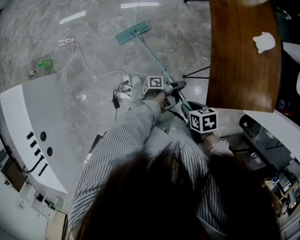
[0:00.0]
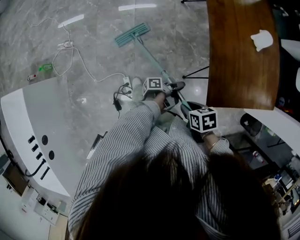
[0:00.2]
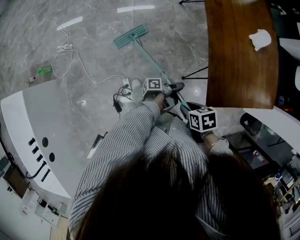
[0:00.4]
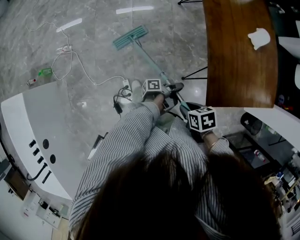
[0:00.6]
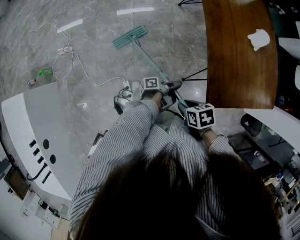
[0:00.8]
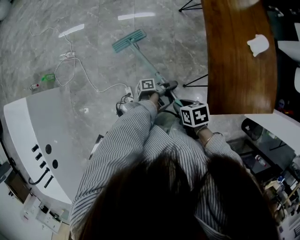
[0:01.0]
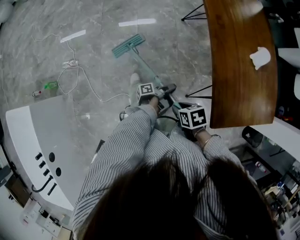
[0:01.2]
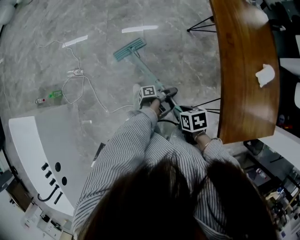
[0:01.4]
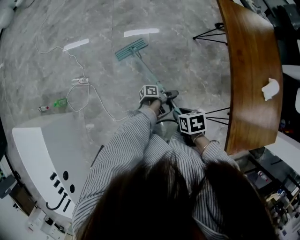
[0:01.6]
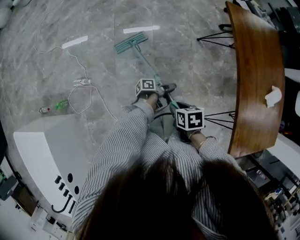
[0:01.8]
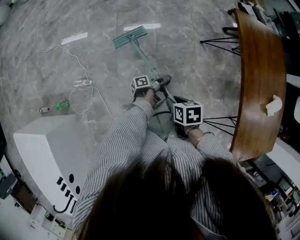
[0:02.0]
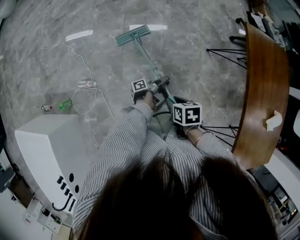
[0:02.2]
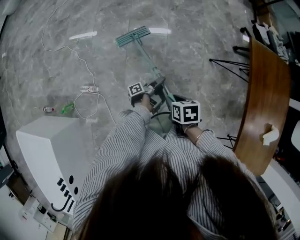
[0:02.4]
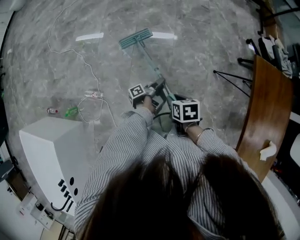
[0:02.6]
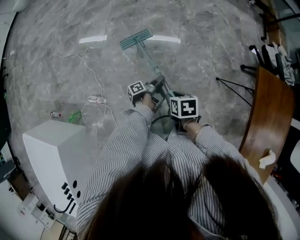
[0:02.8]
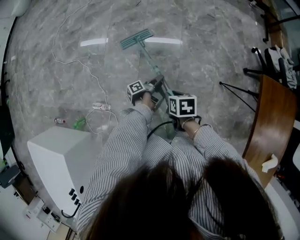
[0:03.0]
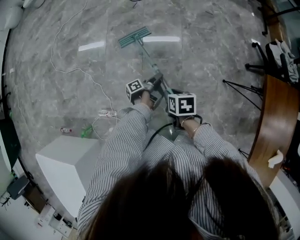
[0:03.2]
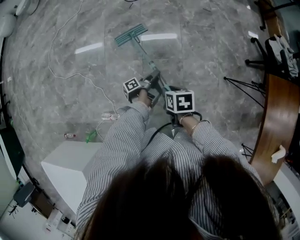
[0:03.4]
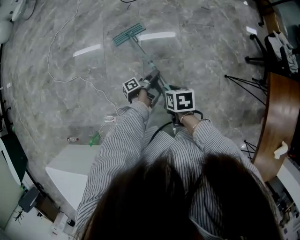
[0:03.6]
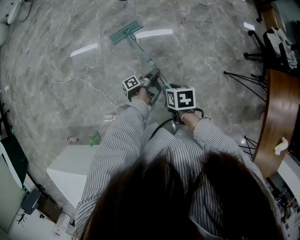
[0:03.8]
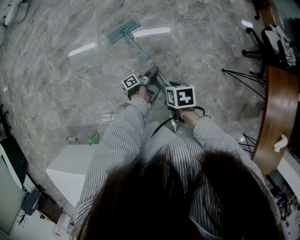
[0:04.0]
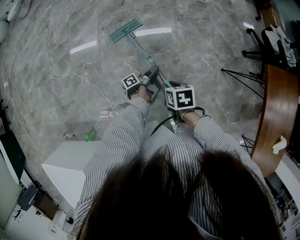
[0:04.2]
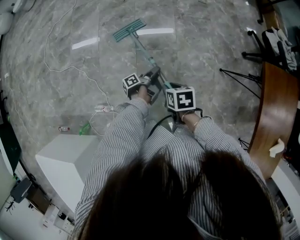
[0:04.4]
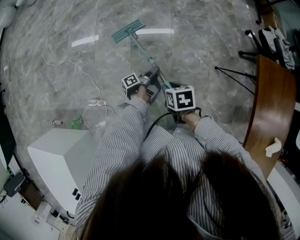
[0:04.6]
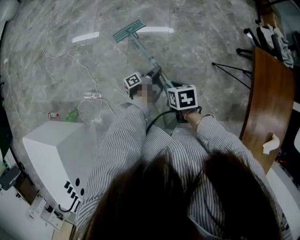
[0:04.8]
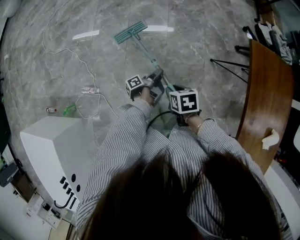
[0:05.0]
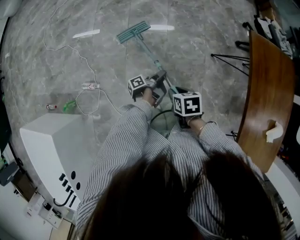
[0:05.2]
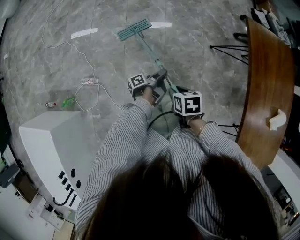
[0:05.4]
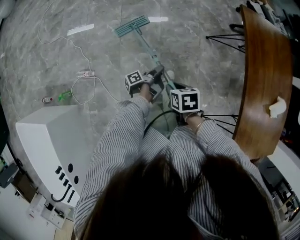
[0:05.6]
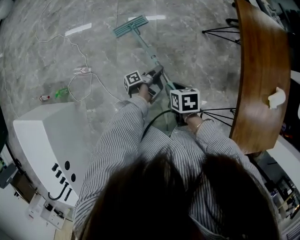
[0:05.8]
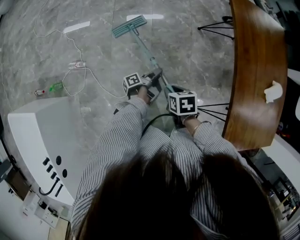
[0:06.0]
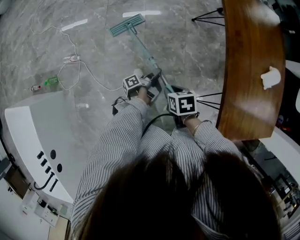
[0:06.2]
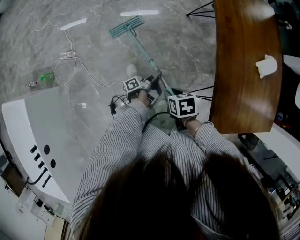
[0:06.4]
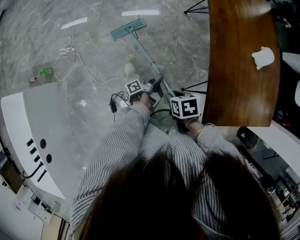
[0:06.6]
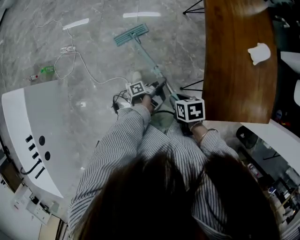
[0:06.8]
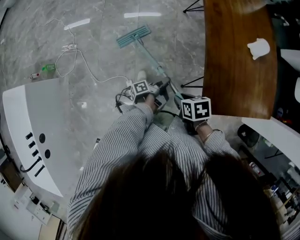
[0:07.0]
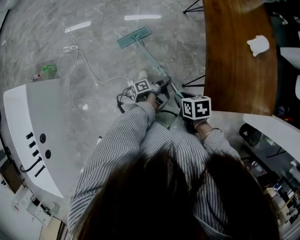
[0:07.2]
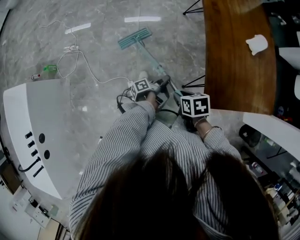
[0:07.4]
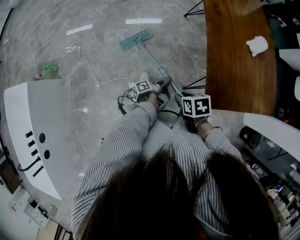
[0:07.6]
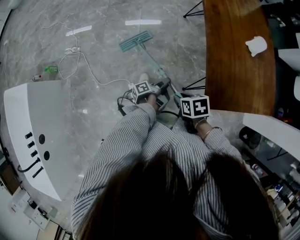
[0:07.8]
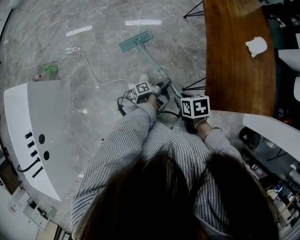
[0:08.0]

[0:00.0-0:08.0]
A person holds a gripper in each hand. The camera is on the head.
0:00.0 to 0:01.6: The right gripper ends up approximately 35 cm from where it was.
0:01.6 to 0:03.2: The right gripper changes place by roughly 60 cm.
0:03.2 to 0:04.8: The right gripper moves approximately 15 cm.
0:04.8 to 0:06.4: The right gripper changes place by some 60 cm.
0:06.4 to 0:08.0: The right gripper ends up about 15 cm from where it was.

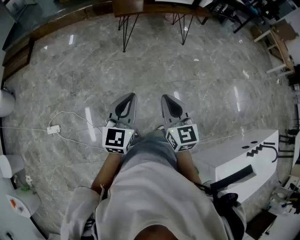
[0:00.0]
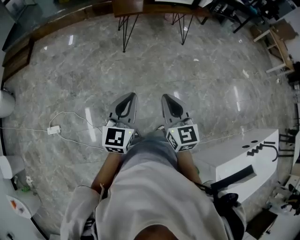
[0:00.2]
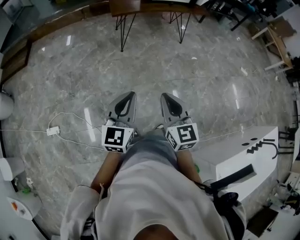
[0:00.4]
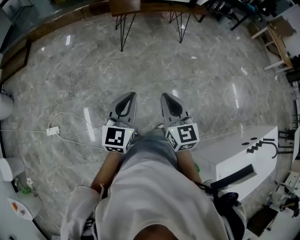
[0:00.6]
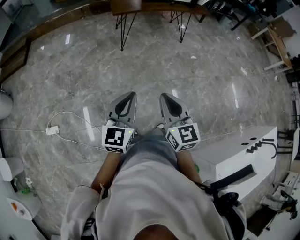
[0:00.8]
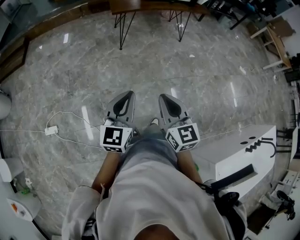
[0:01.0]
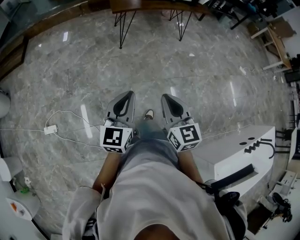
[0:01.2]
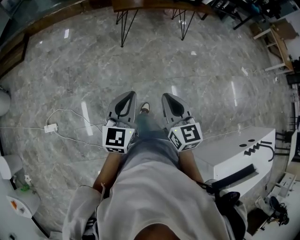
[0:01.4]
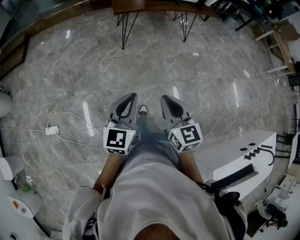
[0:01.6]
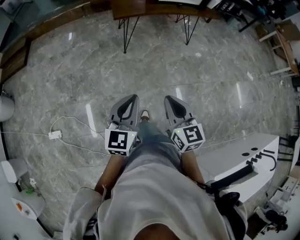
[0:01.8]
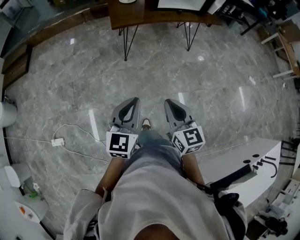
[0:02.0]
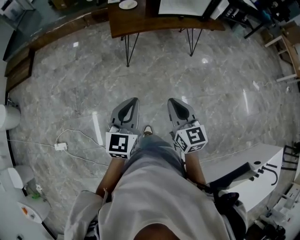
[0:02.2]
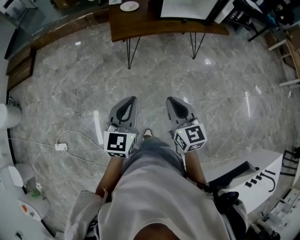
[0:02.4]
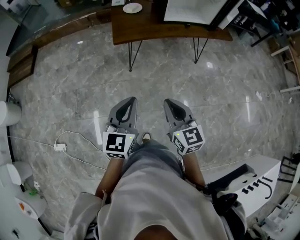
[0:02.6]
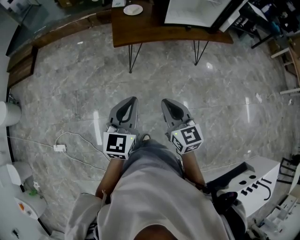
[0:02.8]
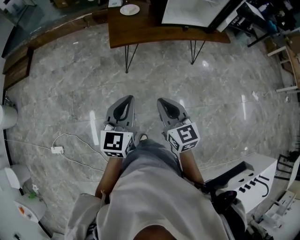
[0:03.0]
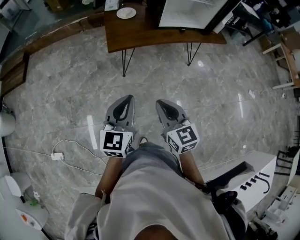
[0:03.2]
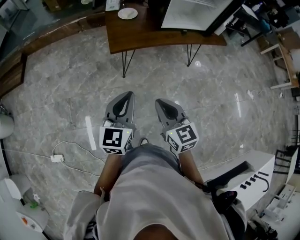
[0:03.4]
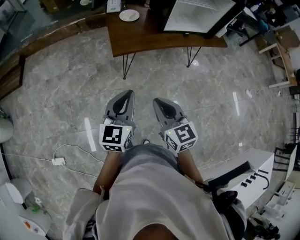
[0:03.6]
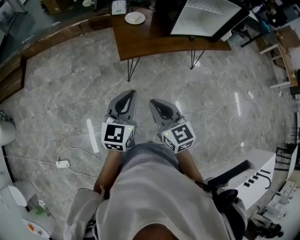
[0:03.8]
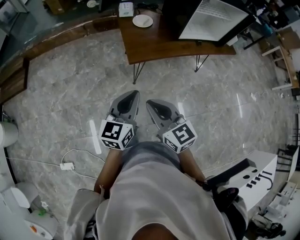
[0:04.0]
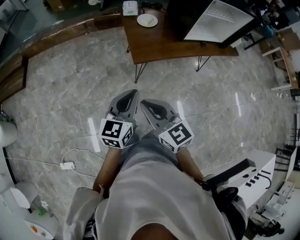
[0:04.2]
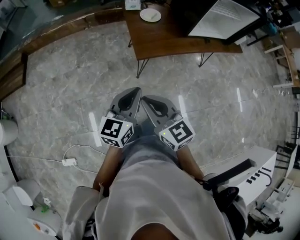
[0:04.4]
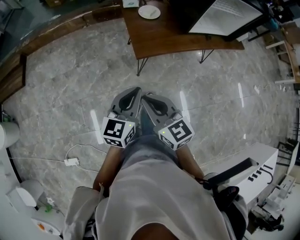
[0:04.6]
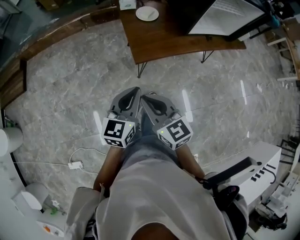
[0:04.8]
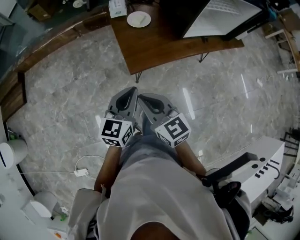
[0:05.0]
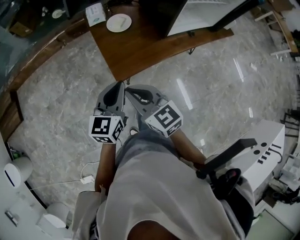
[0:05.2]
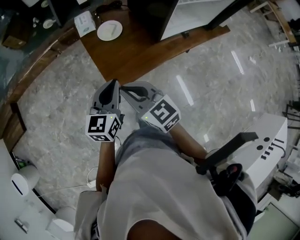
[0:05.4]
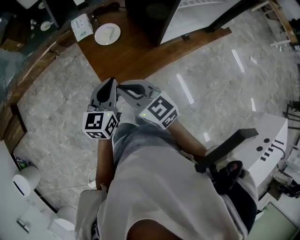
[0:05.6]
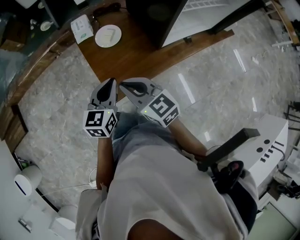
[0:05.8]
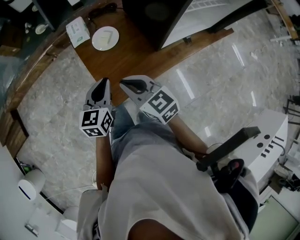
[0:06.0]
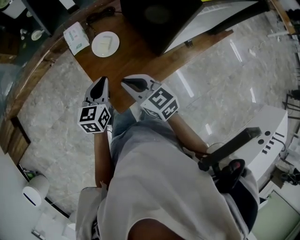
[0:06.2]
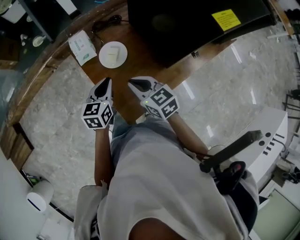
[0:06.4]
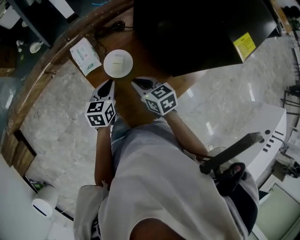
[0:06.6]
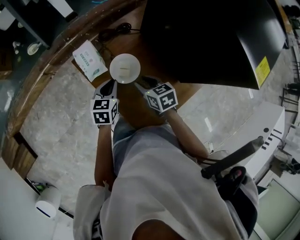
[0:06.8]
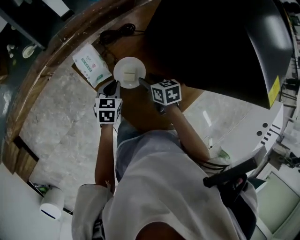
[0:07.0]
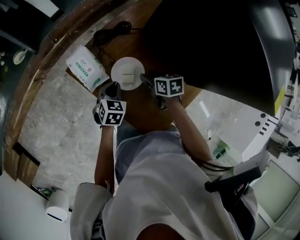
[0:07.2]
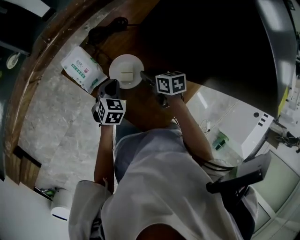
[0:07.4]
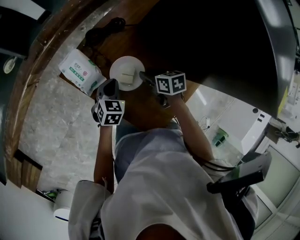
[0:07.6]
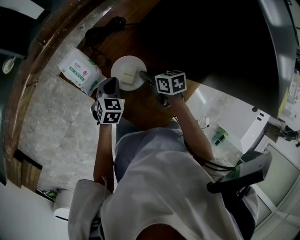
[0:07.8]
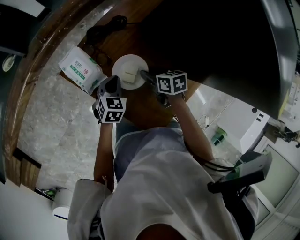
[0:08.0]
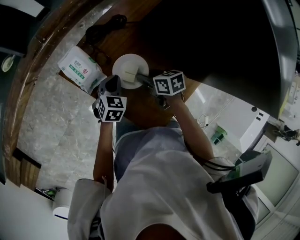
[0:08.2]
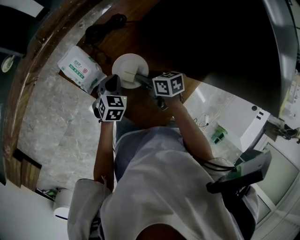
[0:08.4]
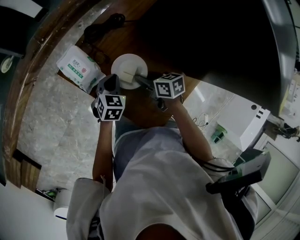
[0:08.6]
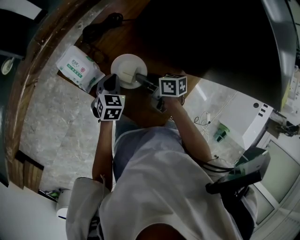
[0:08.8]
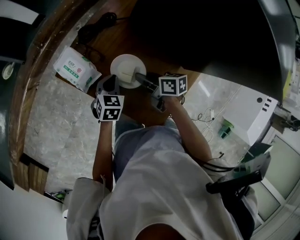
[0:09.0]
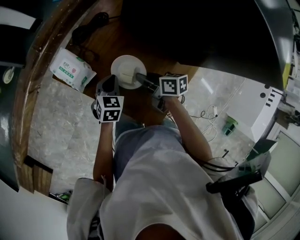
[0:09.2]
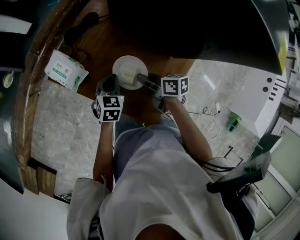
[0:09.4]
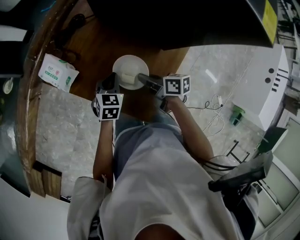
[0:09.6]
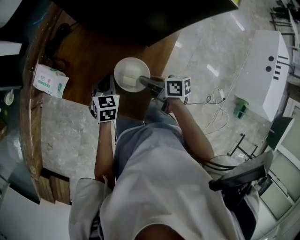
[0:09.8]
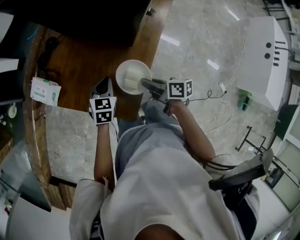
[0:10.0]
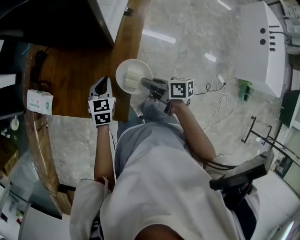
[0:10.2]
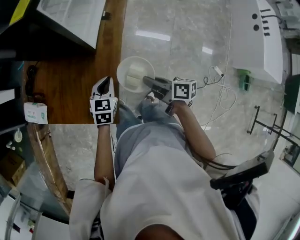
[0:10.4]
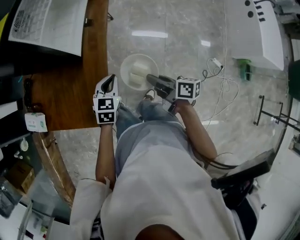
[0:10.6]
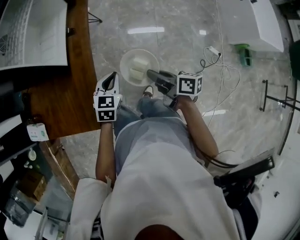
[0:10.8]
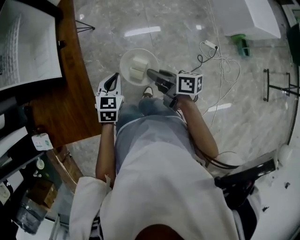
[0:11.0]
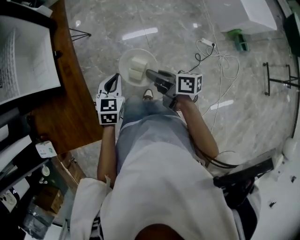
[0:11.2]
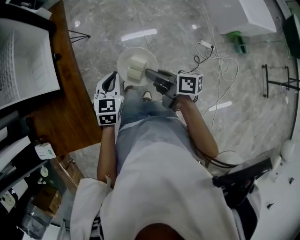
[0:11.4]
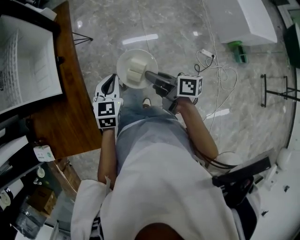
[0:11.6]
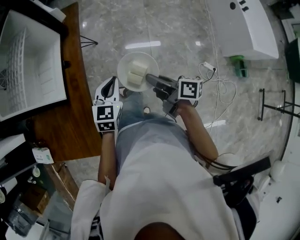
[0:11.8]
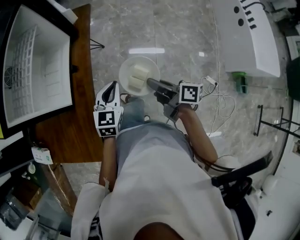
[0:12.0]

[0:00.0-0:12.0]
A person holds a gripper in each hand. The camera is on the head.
0:00.0 to 0:01.6: Both grippers move forward, roughly 10 cm.
0:01.6 to 0:03.0: The pair of grippers is taken forward, roughly 50 cm.
0:03.0 to 0:04.4: The two grippers go roughly 40 cm to the left and forward.
0:04.4 to 0:06.0: Both grippers are carried forward, roughly 50 cm.
0:06.0 to 0:07.6: Both grippers are carried forward, about 40 cm. Both grippers travel together downward, some 25 cm. The left gripper turns by about 40 degrees. The right gripper tilts its fingers about 30 degrees downward, and opens its fingers.
0:07.6 to 0:09.0: The right gripper ends up about 5 cm from where it was, rotates roughly 20 degrees, and closes.
0:09.0 to 0:10.4: Both grippers are carried approximately 50 cm. The left gripper swivels some 30 degrees. Meanwhile the right gripper swivels about 40 degrees.
0:10.4 to 0:12.0: Both grippers travel together to the right and forward, roughly 35 cm.

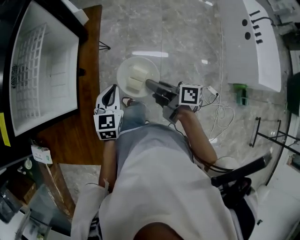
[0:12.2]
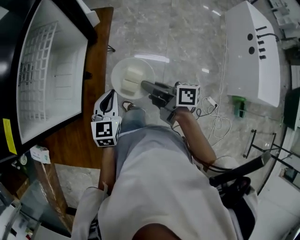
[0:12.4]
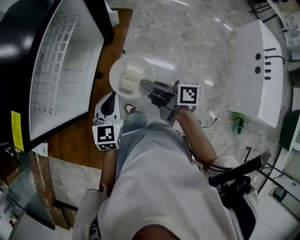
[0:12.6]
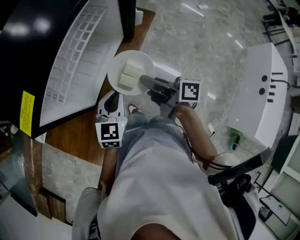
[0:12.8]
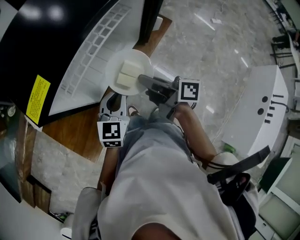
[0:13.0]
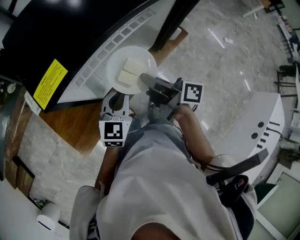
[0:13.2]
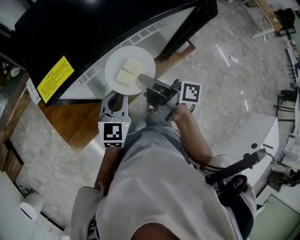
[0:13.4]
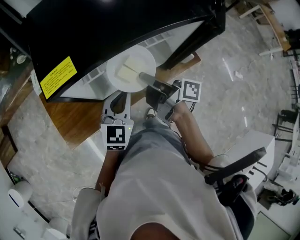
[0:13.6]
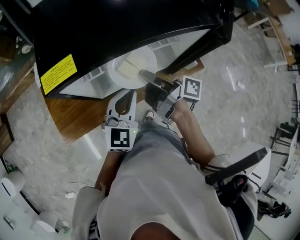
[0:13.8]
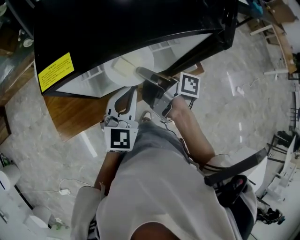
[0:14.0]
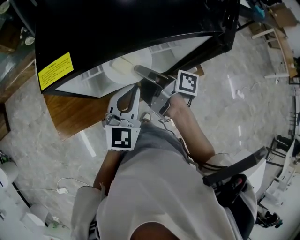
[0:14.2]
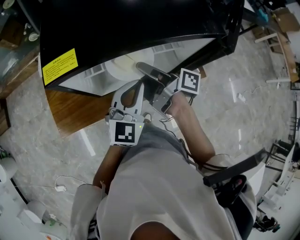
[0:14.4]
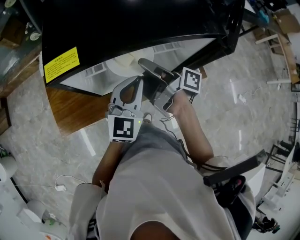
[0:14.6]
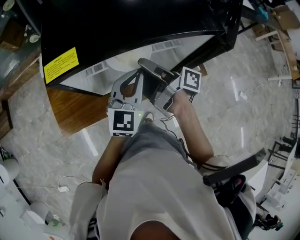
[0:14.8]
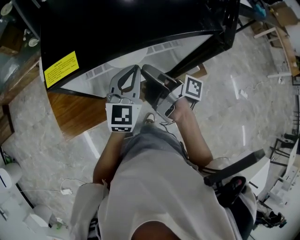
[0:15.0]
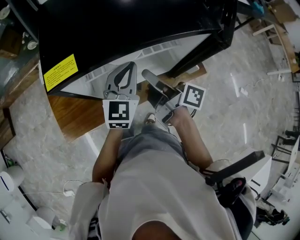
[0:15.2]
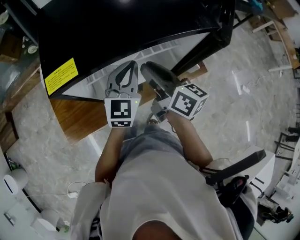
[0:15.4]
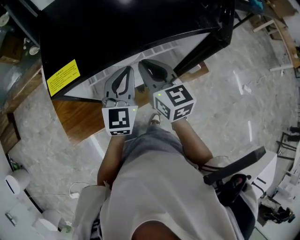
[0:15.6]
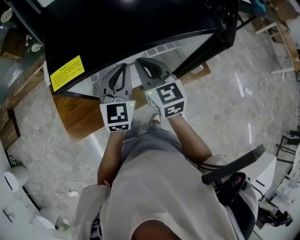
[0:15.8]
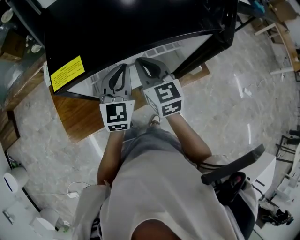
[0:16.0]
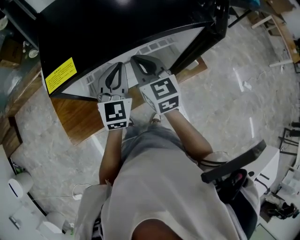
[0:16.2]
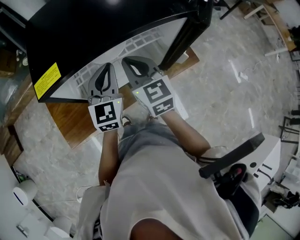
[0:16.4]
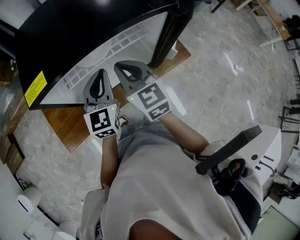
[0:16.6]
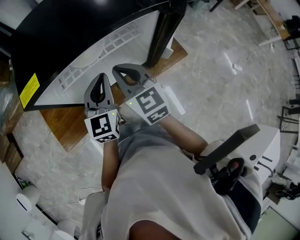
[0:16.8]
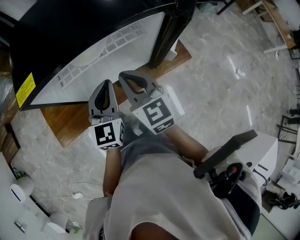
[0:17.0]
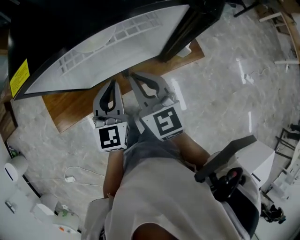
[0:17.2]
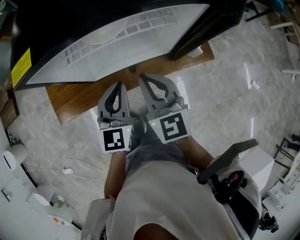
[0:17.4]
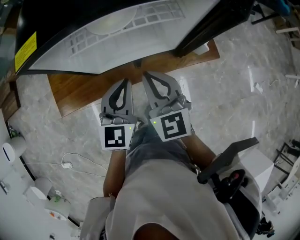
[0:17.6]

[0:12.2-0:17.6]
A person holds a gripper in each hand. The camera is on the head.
0:12.2 to 0:13.6: The right gripper moves some 40 cm, and turns by some 60 degrees, while the left gripper changes place by approximately 30 cm, and turns by approximately 50 degrees.
0:13.6 to 0:15.0: The left gripper heads forward and upward, covering some 10 cm. Meanwhile the right gripper opens its fingers.
0:15.0 to 0:16.2: The right gripper rolls counterclockwise, seen from behind, by about 90 degrees, and closes its fingers.
0:16.2 to 0:17.6: The two grippers go approximately 15 cm backward.
